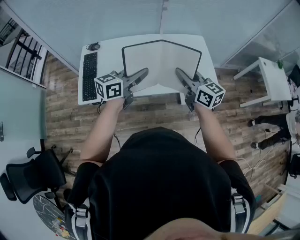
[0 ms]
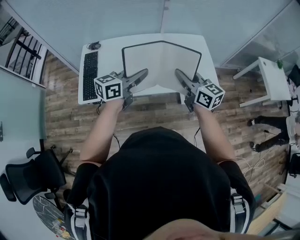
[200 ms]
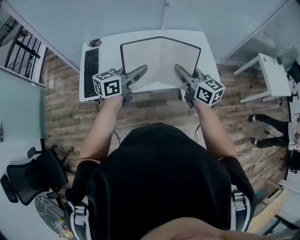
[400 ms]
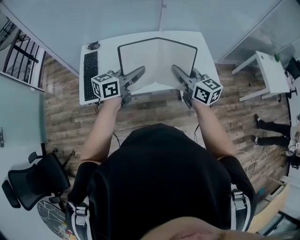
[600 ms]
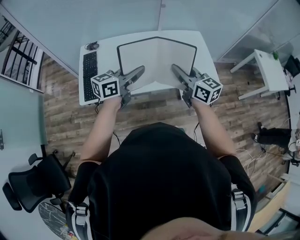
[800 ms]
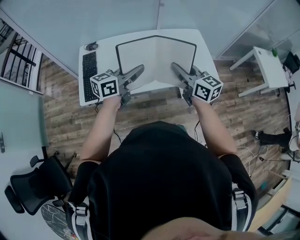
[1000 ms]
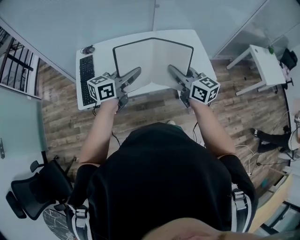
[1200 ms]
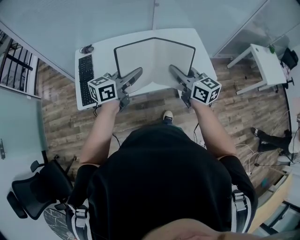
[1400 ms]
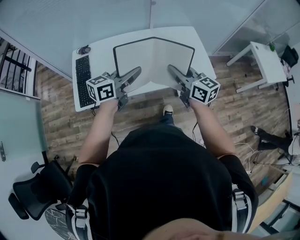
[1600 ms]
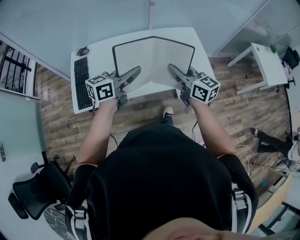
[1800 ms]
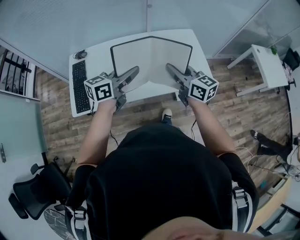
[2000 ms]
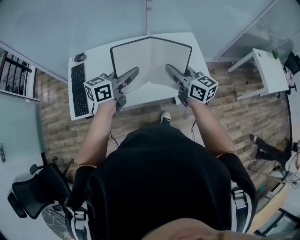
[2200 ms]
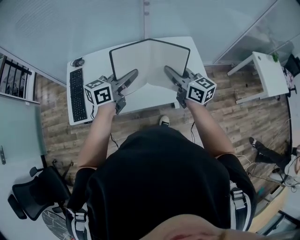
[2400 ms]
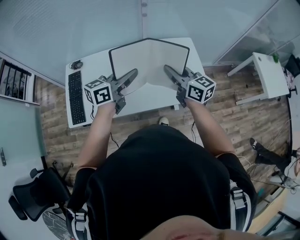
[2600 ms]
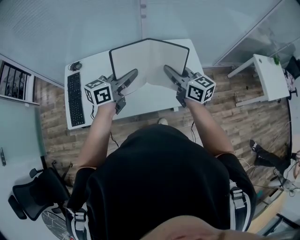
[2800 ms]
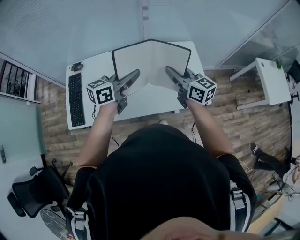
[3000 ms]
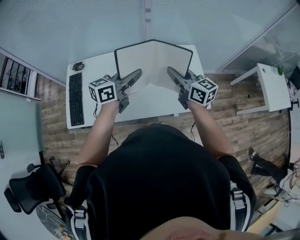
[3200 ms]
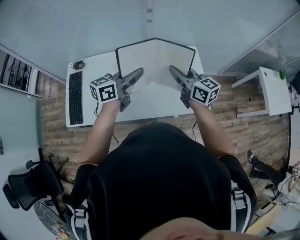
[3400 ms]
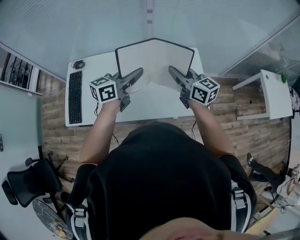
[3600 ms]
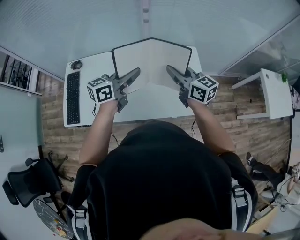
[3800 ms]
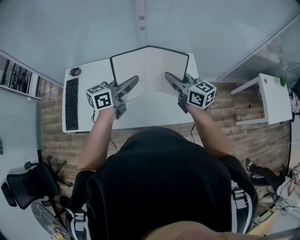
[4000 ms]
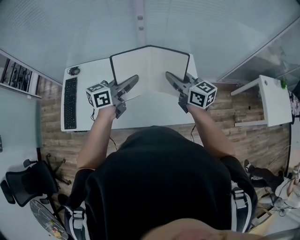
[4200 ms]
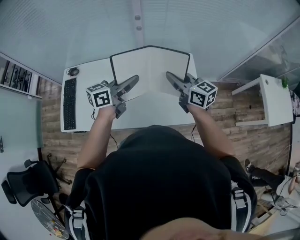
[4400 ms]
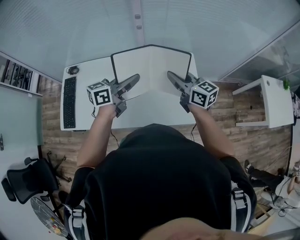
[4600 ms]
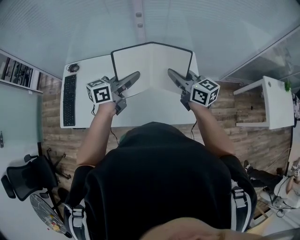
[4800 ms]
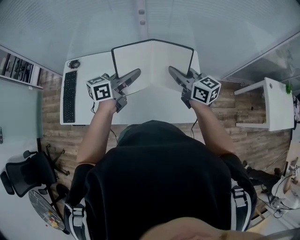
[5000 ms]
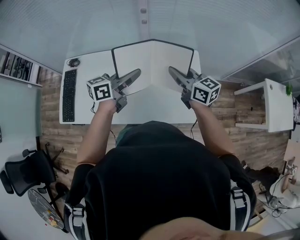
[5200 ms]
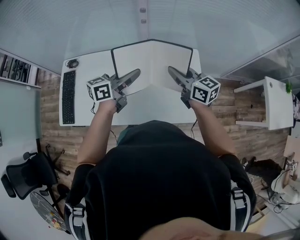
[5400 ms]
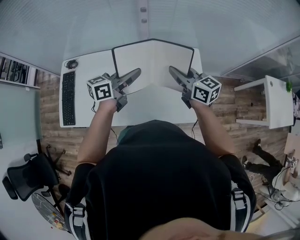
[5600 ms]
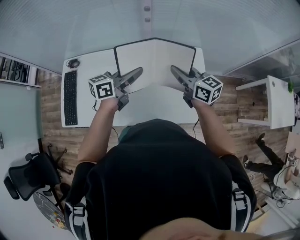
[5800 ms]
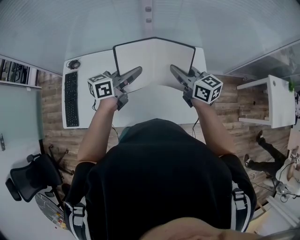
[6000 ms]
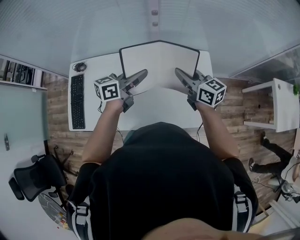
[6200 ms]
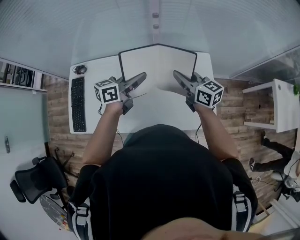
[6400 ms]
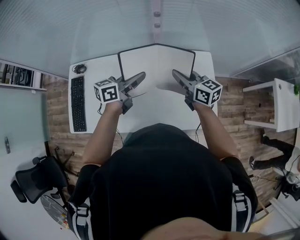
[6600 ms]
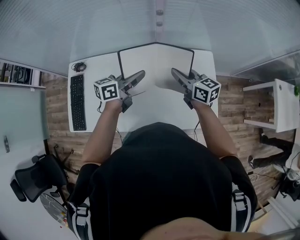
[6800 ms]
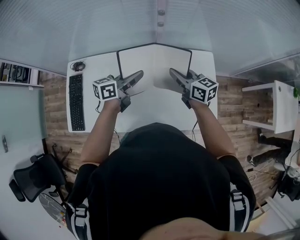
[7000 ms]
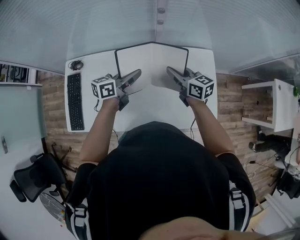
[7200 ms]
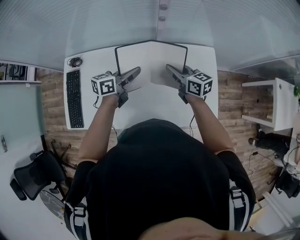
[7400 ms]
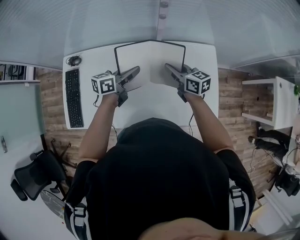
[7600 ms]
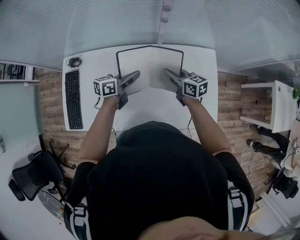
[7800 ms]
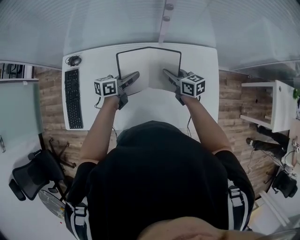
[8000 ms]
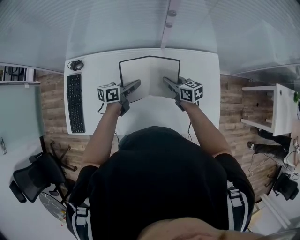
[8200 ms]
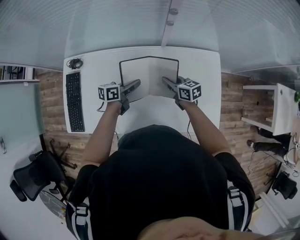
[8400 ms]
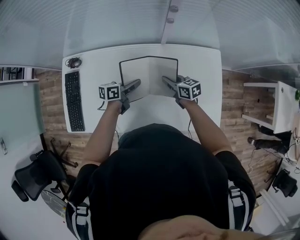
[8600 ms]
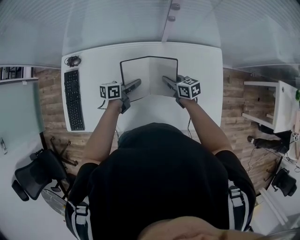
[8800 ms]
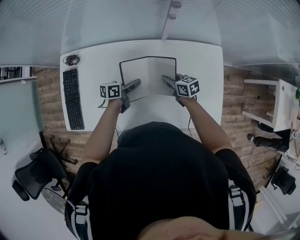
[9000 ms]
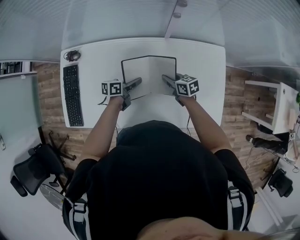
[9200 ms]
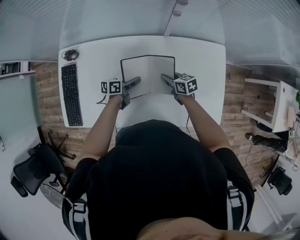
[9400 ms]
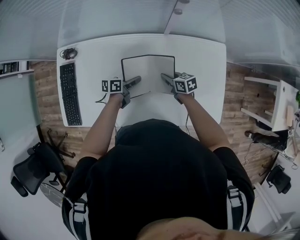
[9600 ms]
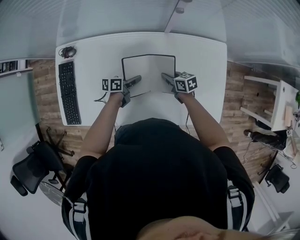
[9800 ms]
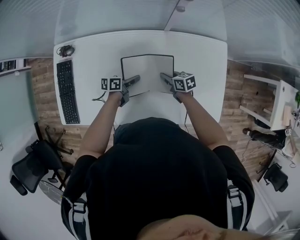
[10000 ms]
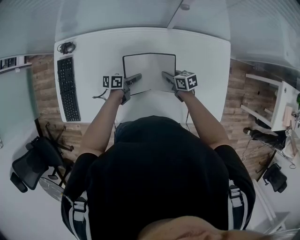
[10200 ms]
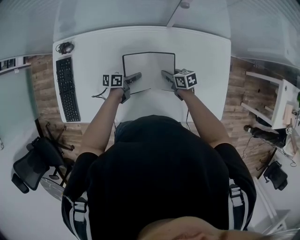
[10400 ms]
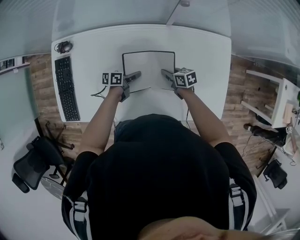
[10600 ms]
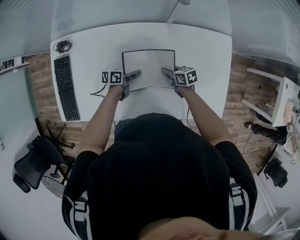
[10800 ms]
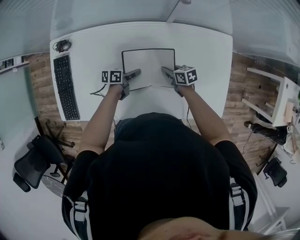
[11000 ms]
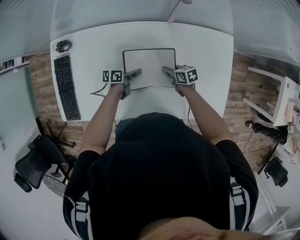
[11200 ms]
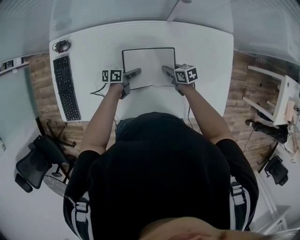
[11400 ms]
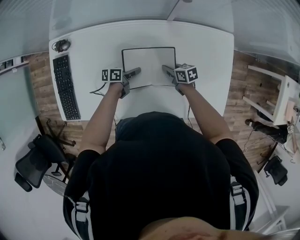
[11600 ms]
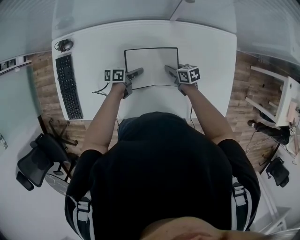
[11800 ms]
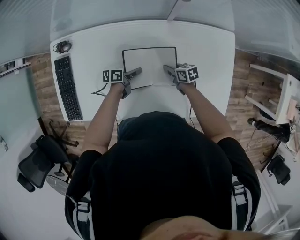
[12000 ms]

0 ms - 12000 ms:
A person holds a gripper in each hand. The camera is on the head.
1600 ms - 3000 ms: The two grippers go approximately 25 cm forward and to the right.
3000 ms - 4400 ms: The left gripper heads to the right and forward, covering roughly 10 cm. Meanwhile the right gripper goes roughly 15 cm forward and to the right.
4400 ms - 6000 ms: Both grippers travel together forward, roughly 10 cm.
6000 ms - 7600 ms: Both grippers travel together downward, to the left and forward, roughly 15 cm.
7600 ms - 9000 ms: Both grippers move downward, approximately 15 cm.
9000 ms - 10400 ms: The grippers both shift downward by some 10 cm.
10400 ms - 12000 ms: The grippers move only a little.

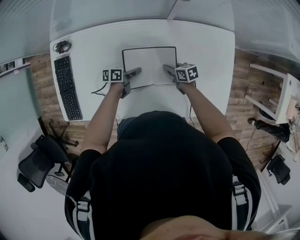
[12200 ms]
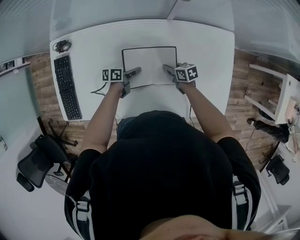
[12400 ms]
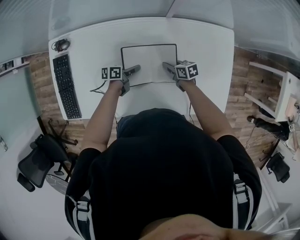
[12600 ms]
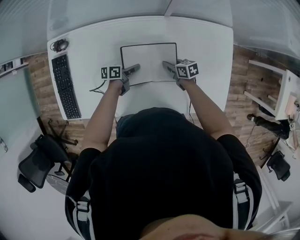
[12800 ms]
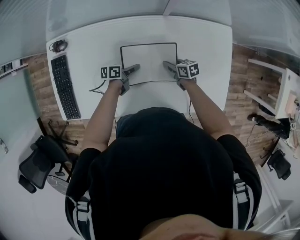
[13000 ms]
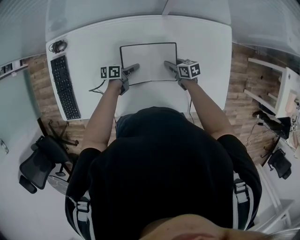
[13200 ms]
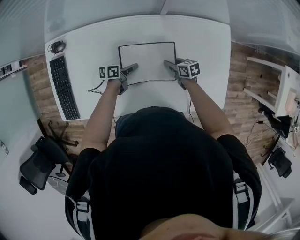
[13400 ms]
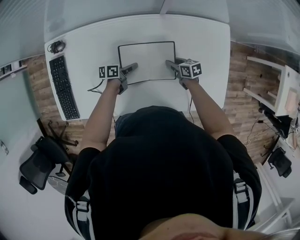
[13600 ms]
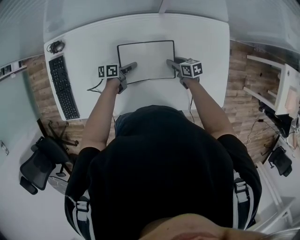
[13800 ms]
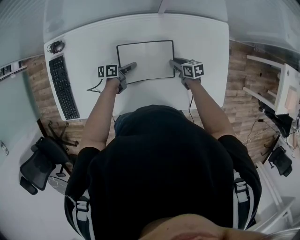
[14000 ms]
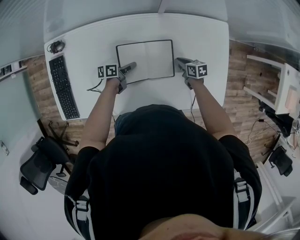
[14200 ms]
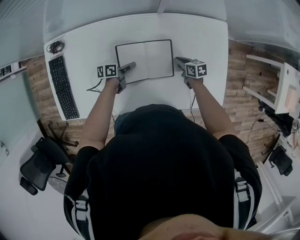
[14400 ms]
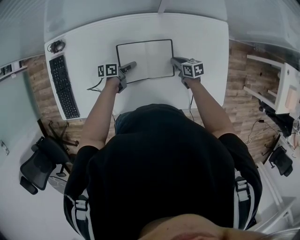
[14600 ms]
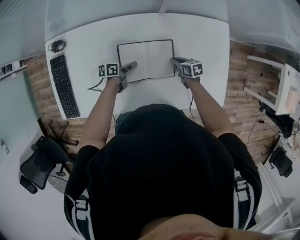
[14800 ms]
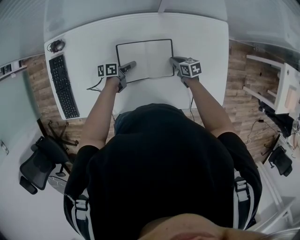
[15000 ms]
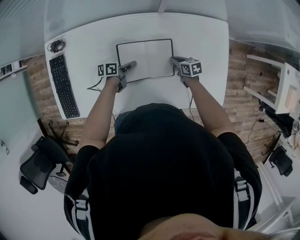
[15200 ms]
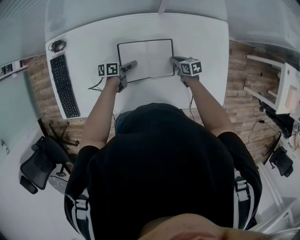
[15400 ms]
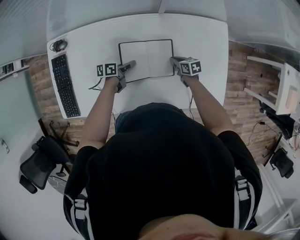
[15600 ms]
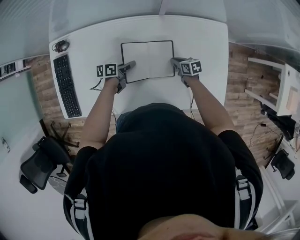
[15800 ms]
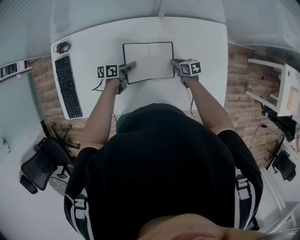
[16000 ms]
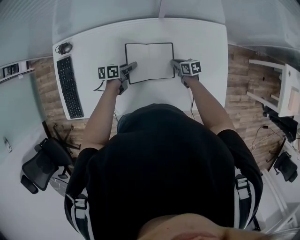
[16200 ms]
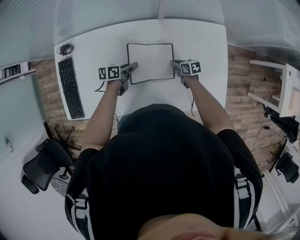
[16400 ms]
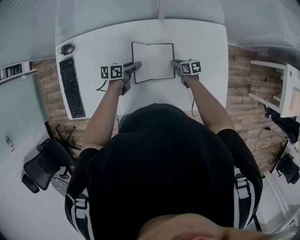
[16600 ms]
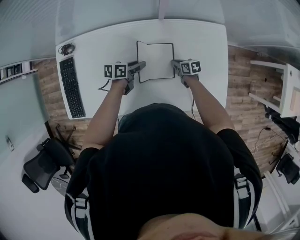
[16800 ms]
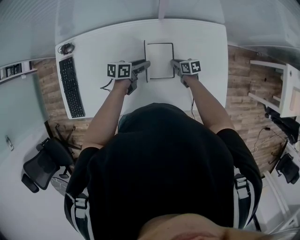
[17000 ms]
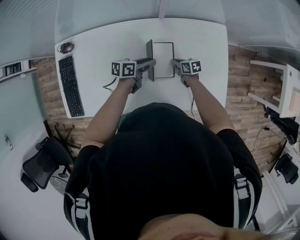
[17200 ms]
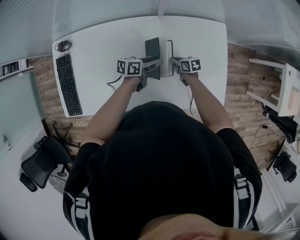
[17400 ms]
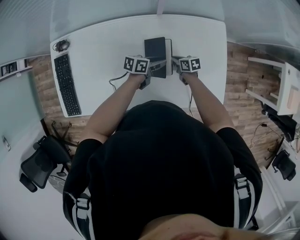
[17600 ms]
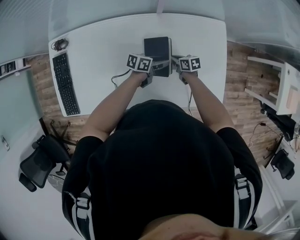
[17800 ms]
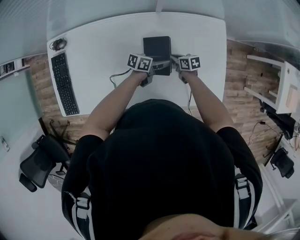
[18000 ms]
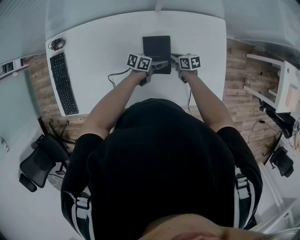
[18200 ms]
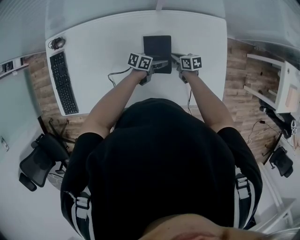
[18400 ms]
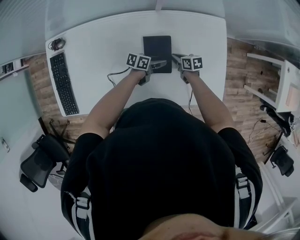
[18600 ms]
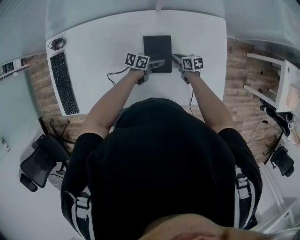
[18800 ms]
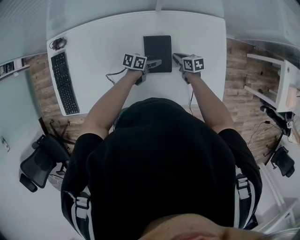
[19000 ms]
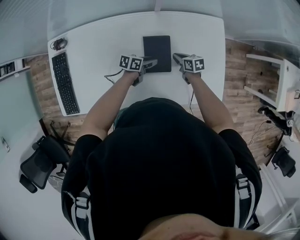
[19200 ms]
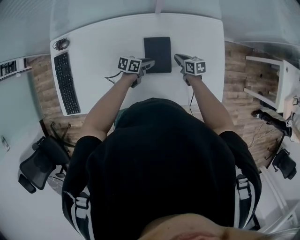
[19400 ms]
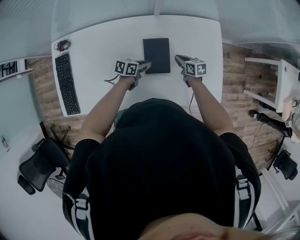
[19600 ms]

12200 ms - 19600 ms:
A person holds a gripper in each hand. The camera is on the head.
12200 ms - 13600 ms: The grippers make only small movements.
13600 ms - 15200 ms: The right gripper closes its fingers.
15200 ms - 16600 ms: The left gripper is displaced upward by roughly 10 cm.
16600 ms - 18200 ms: The left gripper ends up some 15 cm from where it was, and opens its fingers.
18200 ms - 19600 ms: The right gripper shifts roughly 5 cm upward, while the left gripper changes place by approximately 10 cm, and closes up.

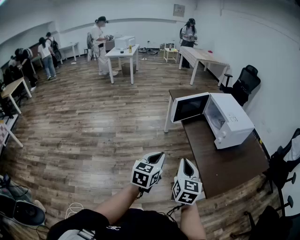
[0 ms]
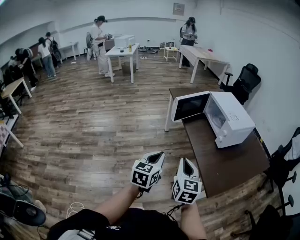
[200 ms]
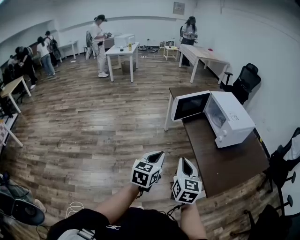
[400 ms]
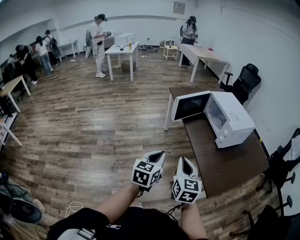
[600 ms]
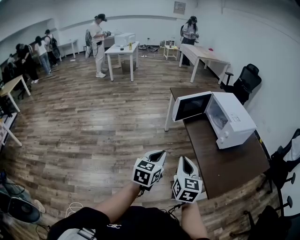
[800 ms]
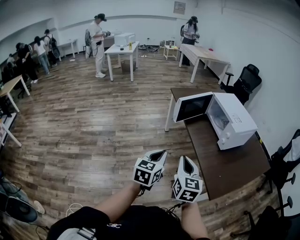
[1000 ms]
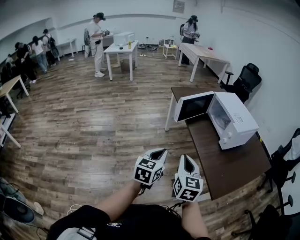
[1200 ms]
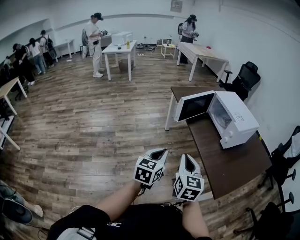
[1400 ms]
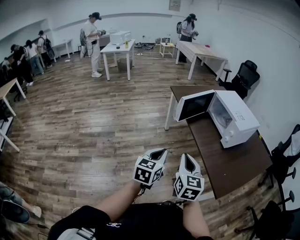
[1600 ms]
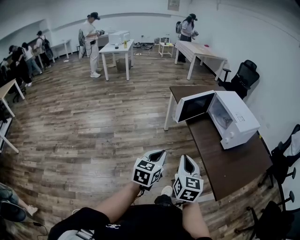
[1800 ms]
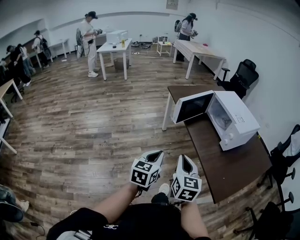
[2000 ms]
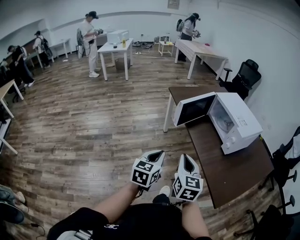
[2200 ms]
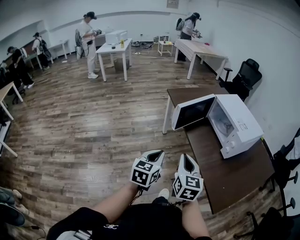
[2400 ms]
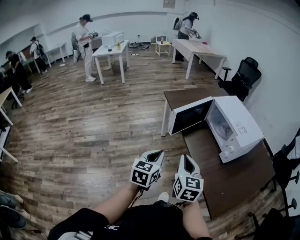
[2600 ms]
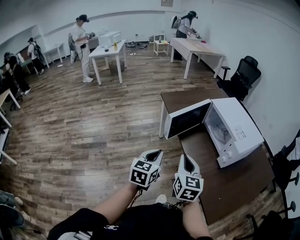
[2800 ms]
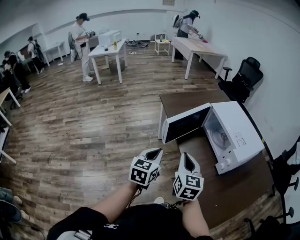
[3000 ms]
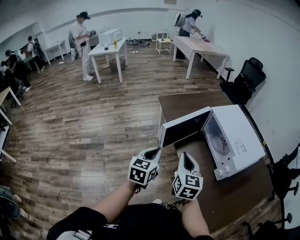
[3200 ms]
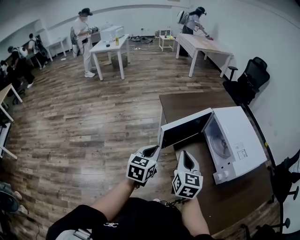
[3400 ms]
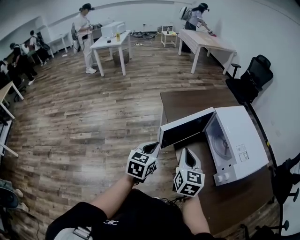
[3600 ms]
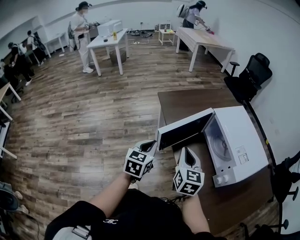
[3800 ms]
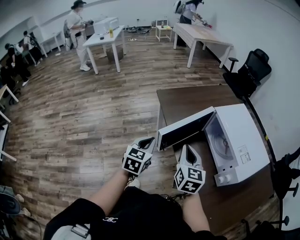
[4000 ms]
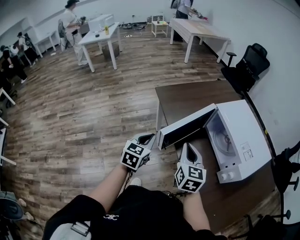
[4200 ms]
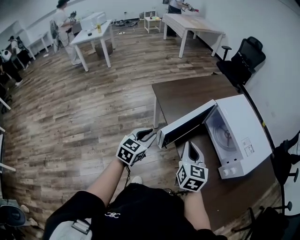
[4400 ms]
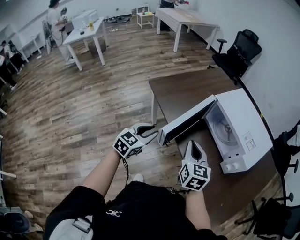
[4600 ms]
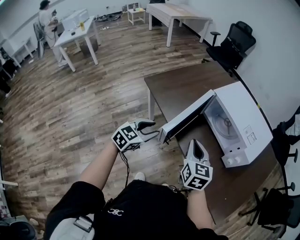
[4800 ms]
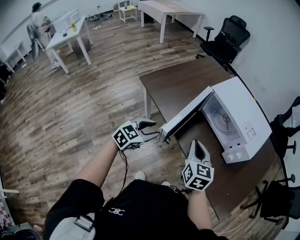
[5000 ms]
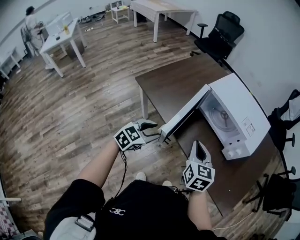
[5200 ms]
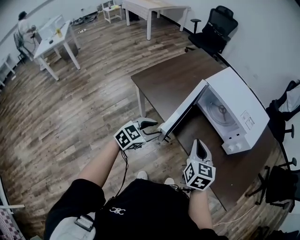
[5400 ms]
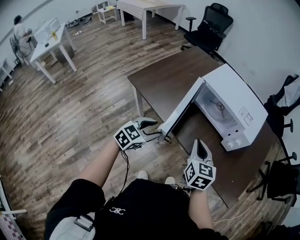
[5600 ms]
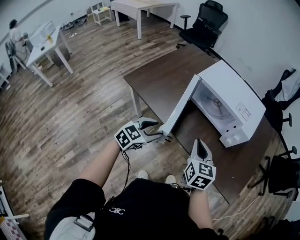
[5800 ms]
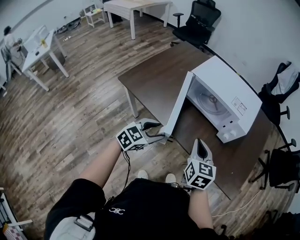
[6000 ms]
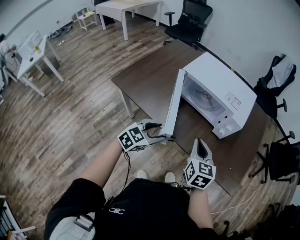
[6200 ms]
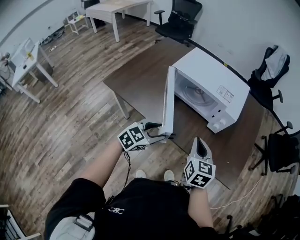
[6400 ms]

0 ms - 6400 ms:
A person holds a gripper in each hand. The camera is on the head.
0 ms - 1600 ms: The grippers both shift to the left by approximately 5 cm.
1600 ms - 3200 ms: The grippers both shift forward by about 30 cm.
3200 ms - 4800 ms: The right gripper changes place by some 10 cm; the left gripper shifts by approximately 20 cm, changes its angle by some 50 degrees, and opens up.
4800 ms - 6400 ms: The right gripper changes place by about 15 cm, and changes its angle by some 30 degrees, while the left gripper ends up about 15 cm from where it was, and changes its angle by roughly 30 degrees.
